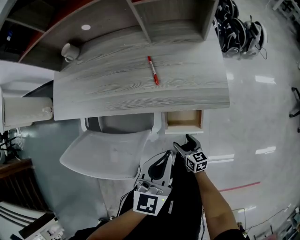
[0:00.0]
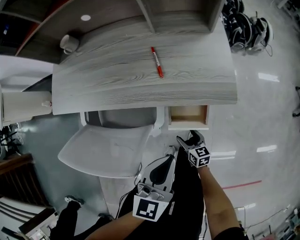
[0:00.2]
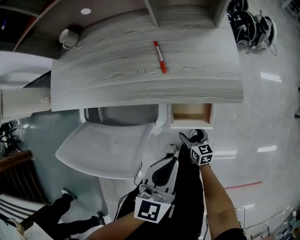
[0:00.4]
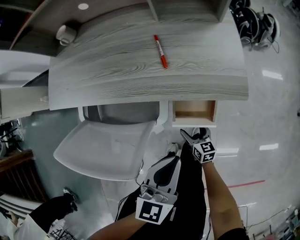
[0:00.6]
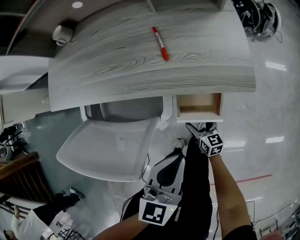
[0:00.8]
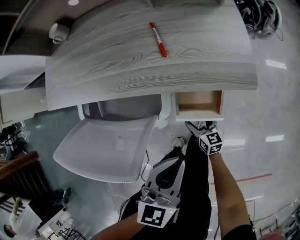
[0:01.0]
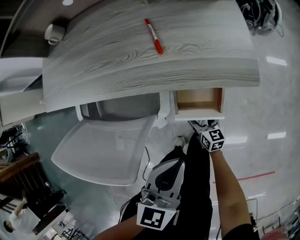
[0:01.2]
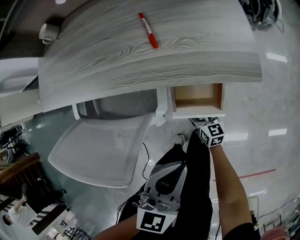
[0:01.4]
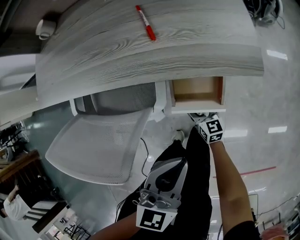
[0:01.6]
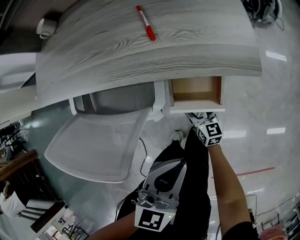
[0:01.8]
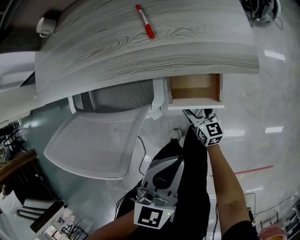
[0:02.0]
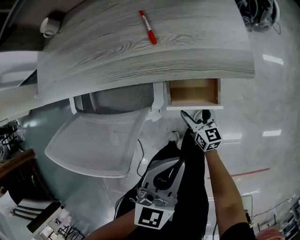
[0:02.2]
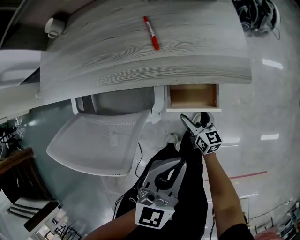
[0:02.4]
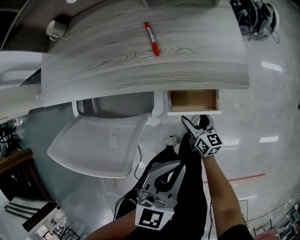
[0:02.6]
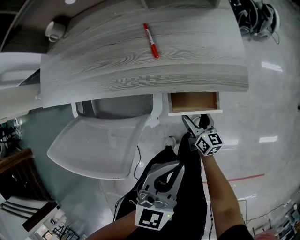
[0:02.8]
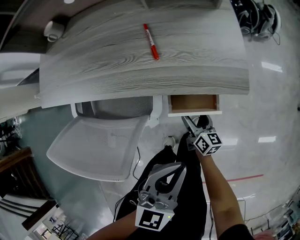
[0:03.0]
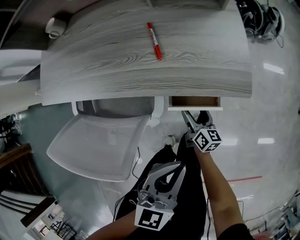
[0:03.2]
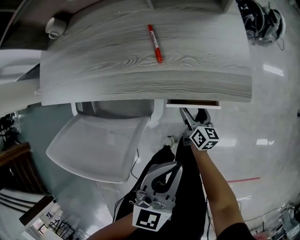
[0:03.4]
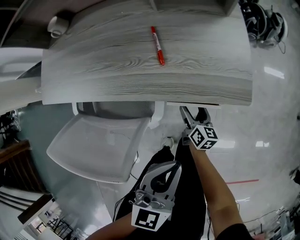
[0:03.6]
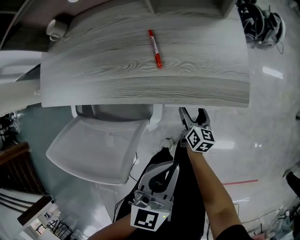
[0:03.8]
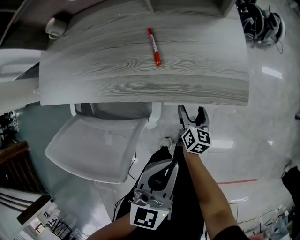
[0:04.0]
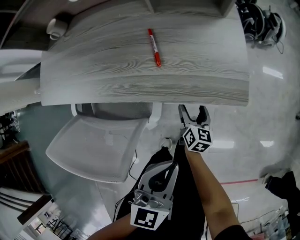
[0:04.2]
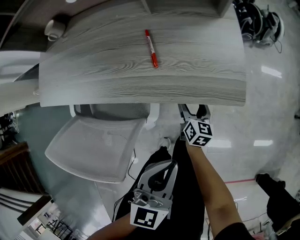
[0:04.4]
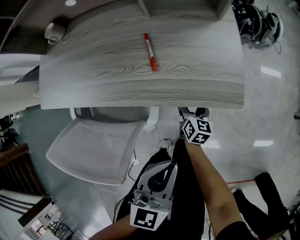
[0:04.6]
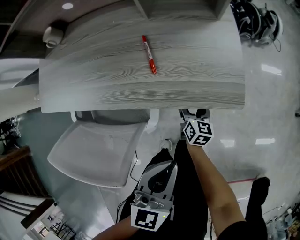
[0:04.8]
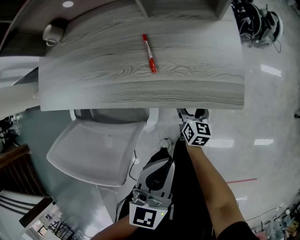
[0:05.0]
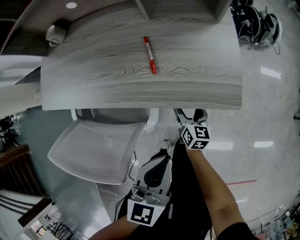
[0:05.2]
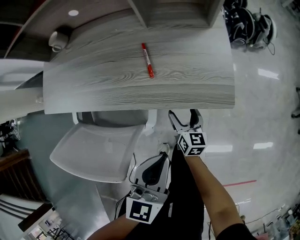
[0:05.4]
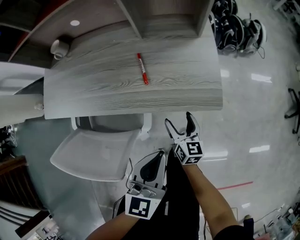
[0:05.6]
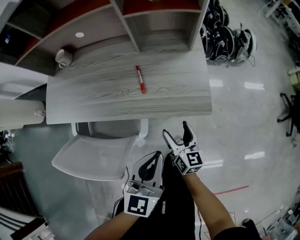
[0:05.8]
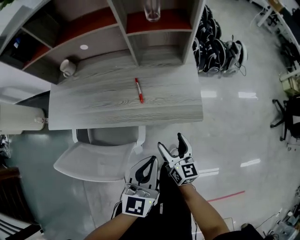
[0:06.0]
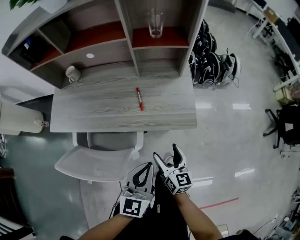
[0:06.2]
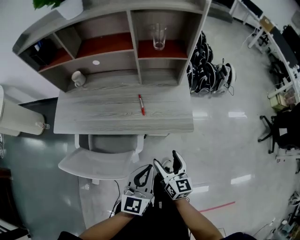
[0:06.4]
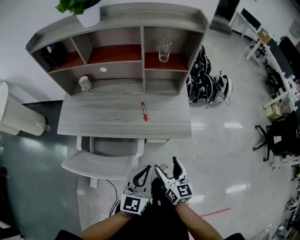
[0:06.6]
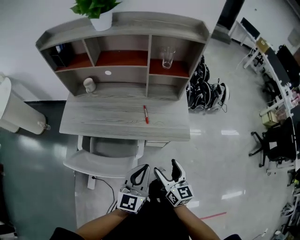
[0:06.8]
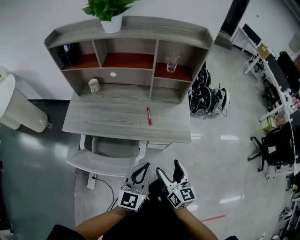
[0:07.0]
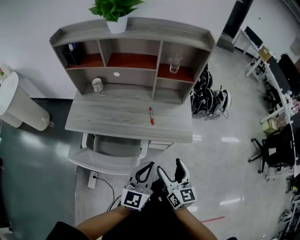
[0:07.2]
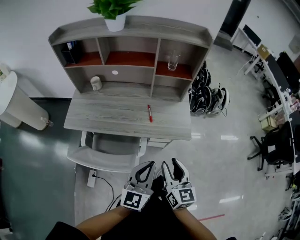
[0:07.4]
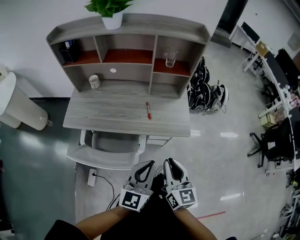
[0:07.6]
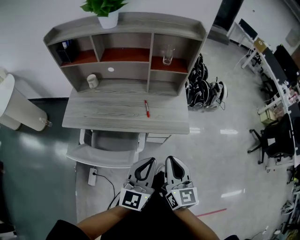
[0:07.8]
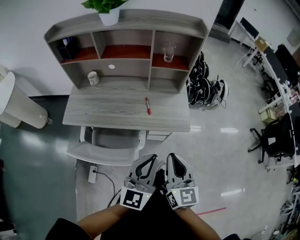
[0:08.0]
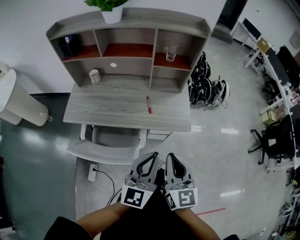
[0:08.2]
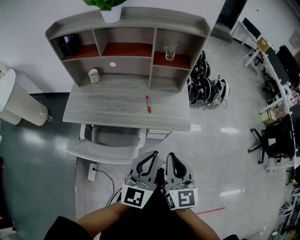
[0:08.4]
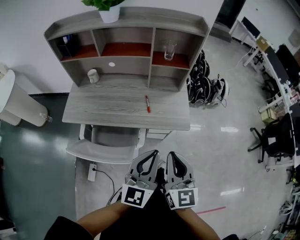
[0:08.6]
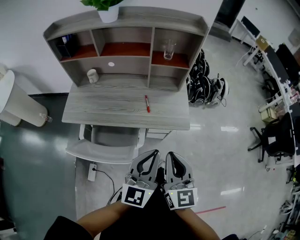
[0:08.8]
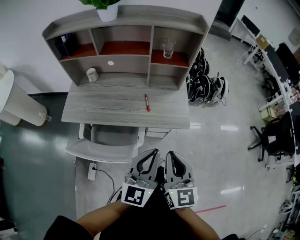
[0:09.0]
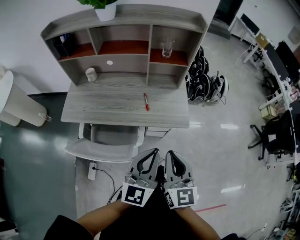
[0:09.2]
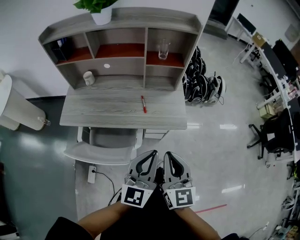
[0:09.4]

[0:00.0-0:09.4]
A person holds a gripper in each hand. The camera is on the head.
0.0 to 1.6 s: The left gripper heads downward and backward, covering approximately 10 cm. The right gripper heads downward and forward, covering about 10 cm.
1.6 to 3.2 s: The right gripper is displaced upward by roughly 10 cm, and turns by roughly 30 degrees, while the left gripper shifts by roughly 5 cm.
3.2 to 4.8 s: The right gripper goes approximately 10 cm forward.
4.8 to 6.2 s: The left gripper heads upward, covering approximately 10 cm. Meanwhile the right gripper heads upward and backward, covering approximately 30 cm.
6.2 to 7.8 s: The right gripper is displaced upward and backward by about 25 cm, and closes its fingers, while the left gripper is displaced upward and backward by roughly 15 cm.
7.8 to 9.4 s: The grippers move only a little.

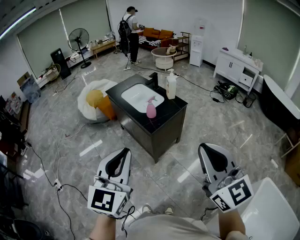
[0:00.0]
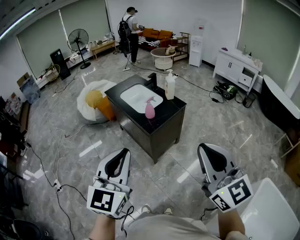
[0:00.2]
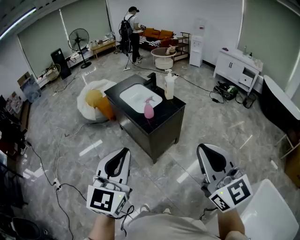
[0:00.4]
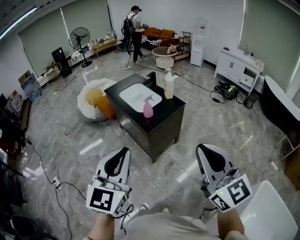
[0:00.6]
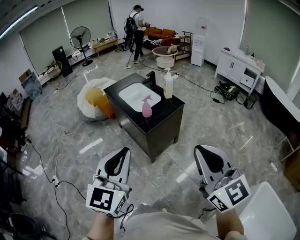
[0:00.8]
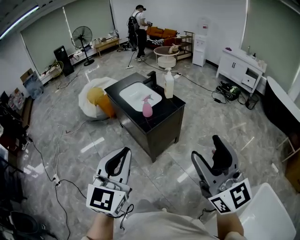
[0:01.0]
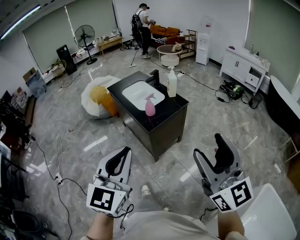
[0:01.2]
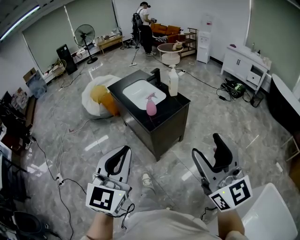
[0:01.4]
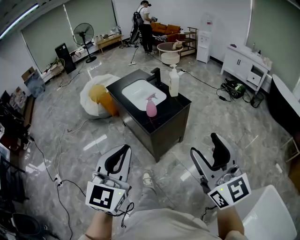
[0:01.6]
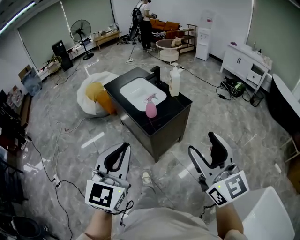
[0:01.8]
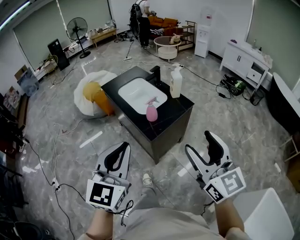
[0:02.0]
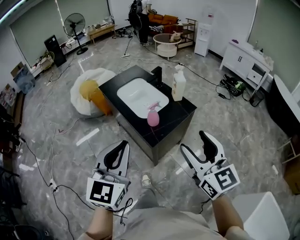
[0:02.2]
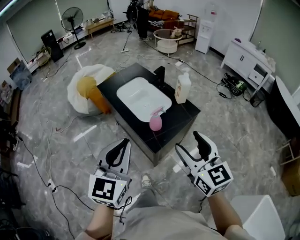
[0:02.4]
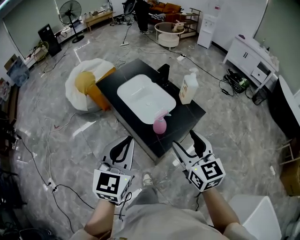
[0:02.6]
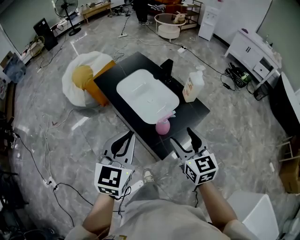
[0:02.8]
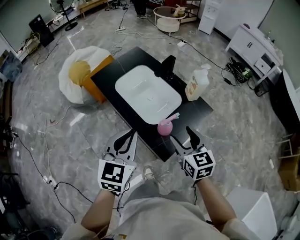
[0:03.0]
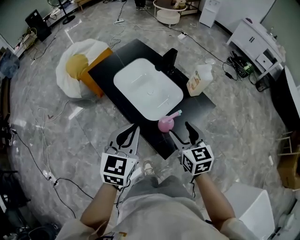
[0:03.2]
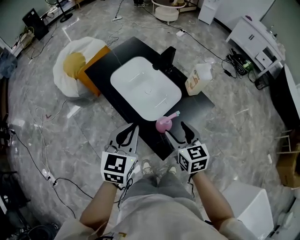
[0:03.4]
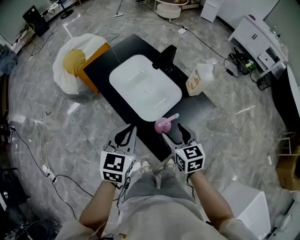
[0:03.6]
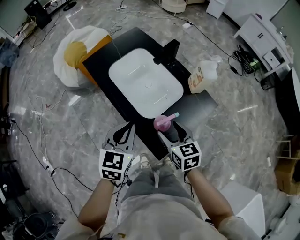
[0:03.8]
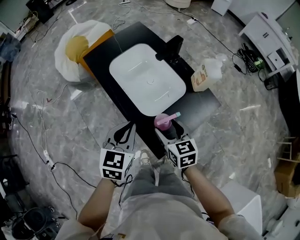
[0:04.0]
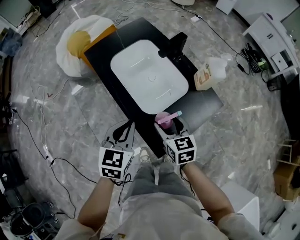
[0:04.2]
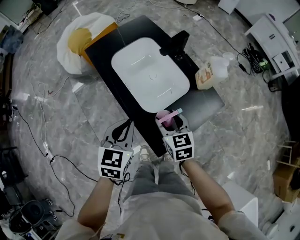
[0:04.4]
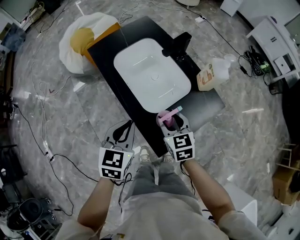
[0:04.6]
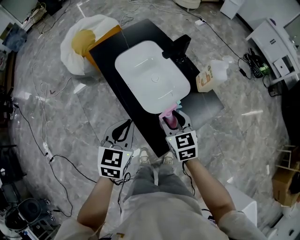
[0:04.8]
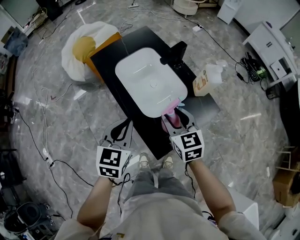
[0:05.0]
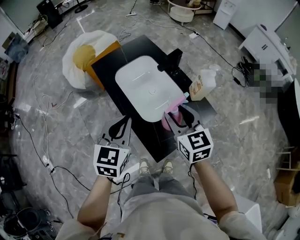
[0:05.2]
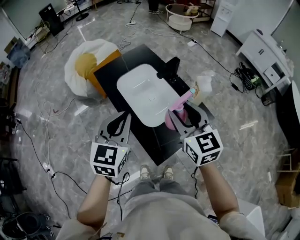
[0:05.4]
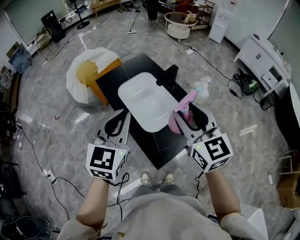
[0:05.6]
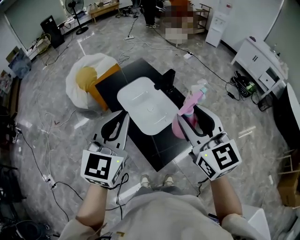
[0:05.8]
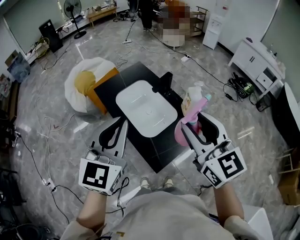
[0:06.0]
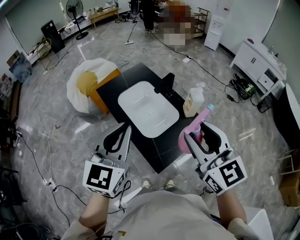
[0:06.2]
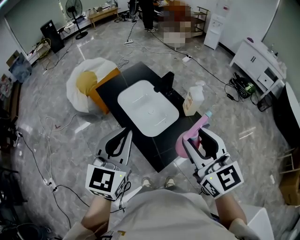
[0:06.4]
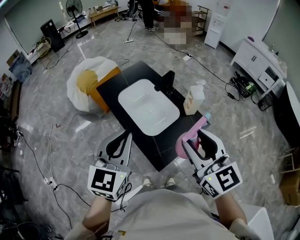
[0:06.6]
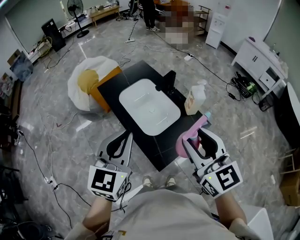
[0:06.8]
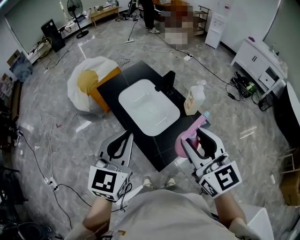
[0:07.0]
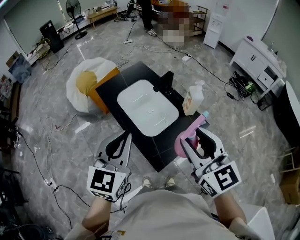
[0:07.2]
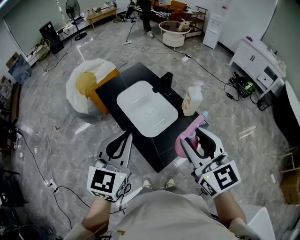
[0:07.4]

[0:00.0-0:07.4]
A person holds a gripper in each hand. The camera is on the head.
0.0 to 1.4 s: The right gripper moves to the right, roughly 5 cm, and opens.
1.4 to 3.0 s: The pair of grippers is taken forward, roughly 40 cm. The right gripper goes about 25 cm downward, and angles its fingers downward, by approximately 40 degrees. Meanwhile the left gripper rotates some 20 degrees.
3.0 to 4.4 s: The left gripper travels downward by some 10 cm, while the right gripper travels downward and forward by approximately 15 cm.
4.4 to 6.0 s: The two grippers go approximately 30 cm upward. The left gripper changes its angle by roughly 30 degrees; the right gripper rotates about 30 degrees.
6.0 to 7.4 s: The right gripper ends up roughly 5 cm from where it was, while the left gripper moves downward, approximately 5 cm.

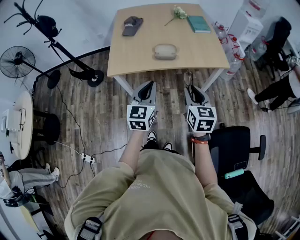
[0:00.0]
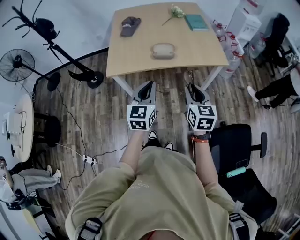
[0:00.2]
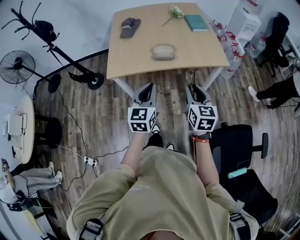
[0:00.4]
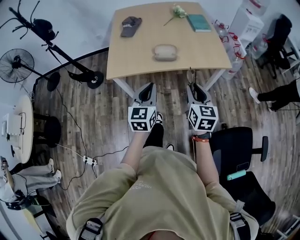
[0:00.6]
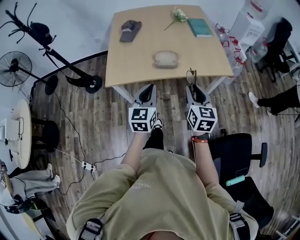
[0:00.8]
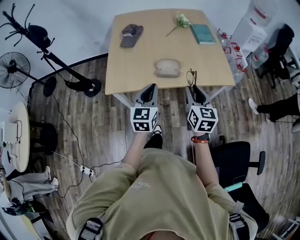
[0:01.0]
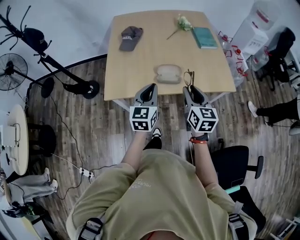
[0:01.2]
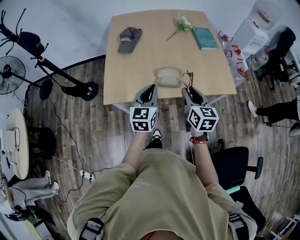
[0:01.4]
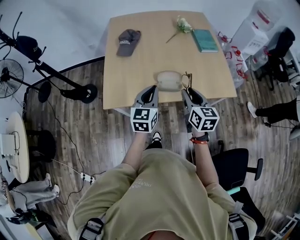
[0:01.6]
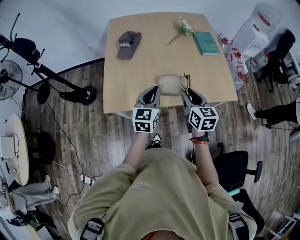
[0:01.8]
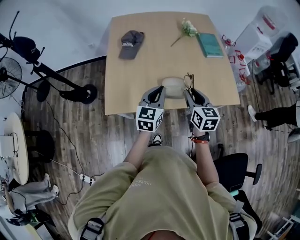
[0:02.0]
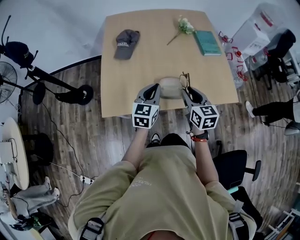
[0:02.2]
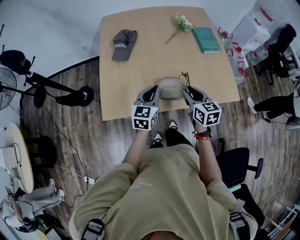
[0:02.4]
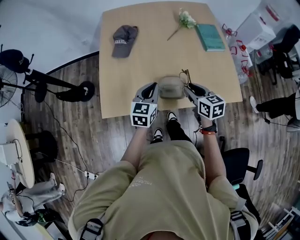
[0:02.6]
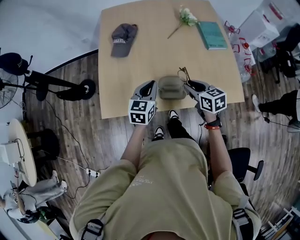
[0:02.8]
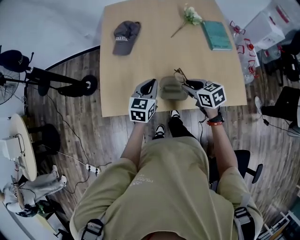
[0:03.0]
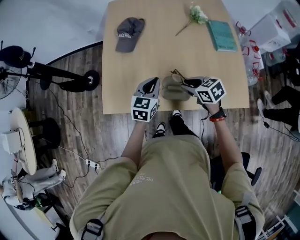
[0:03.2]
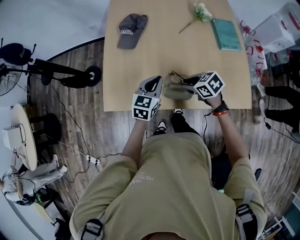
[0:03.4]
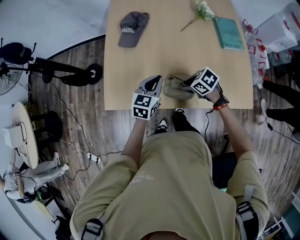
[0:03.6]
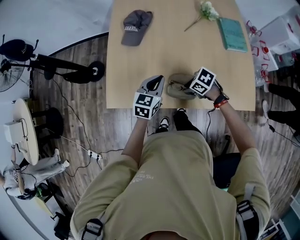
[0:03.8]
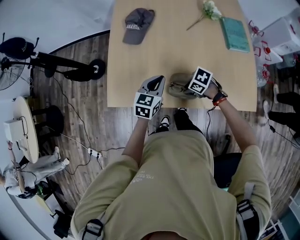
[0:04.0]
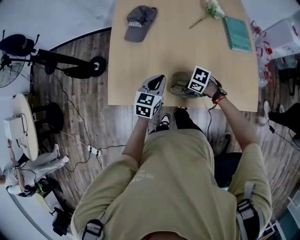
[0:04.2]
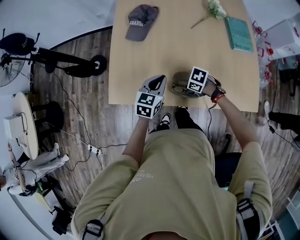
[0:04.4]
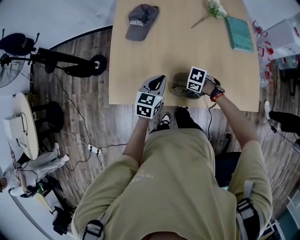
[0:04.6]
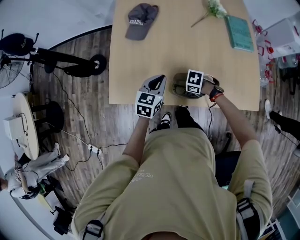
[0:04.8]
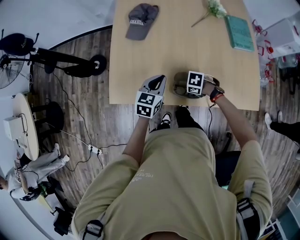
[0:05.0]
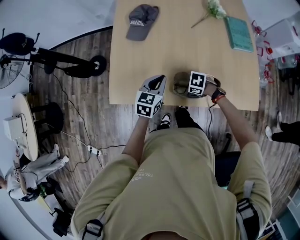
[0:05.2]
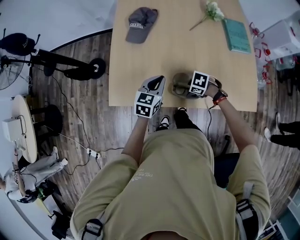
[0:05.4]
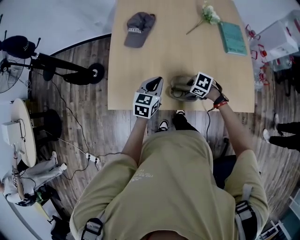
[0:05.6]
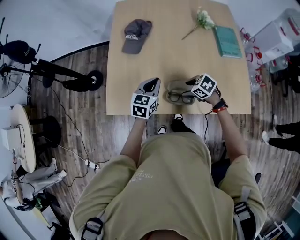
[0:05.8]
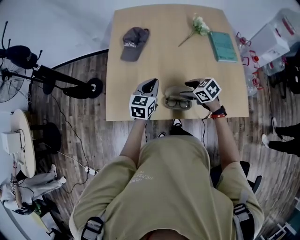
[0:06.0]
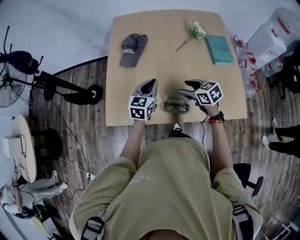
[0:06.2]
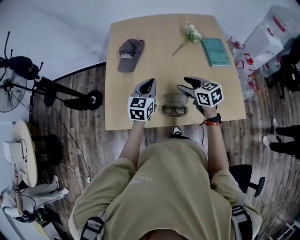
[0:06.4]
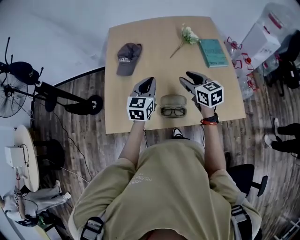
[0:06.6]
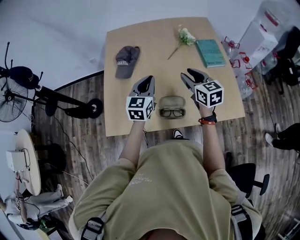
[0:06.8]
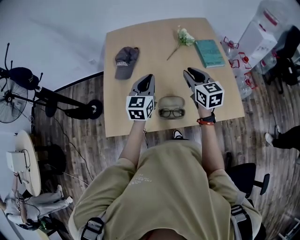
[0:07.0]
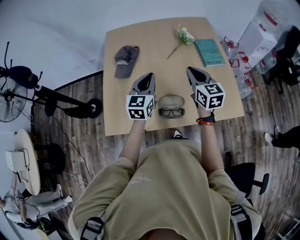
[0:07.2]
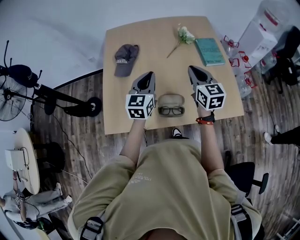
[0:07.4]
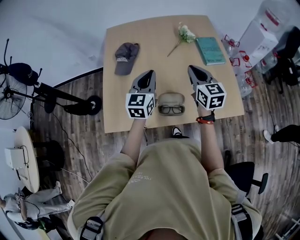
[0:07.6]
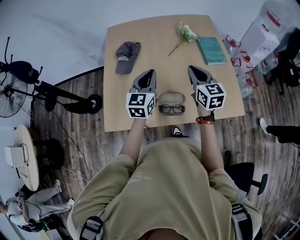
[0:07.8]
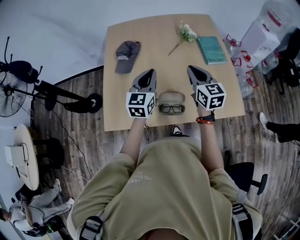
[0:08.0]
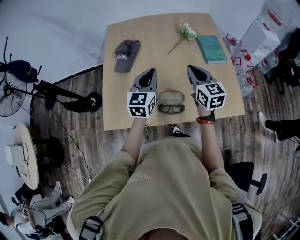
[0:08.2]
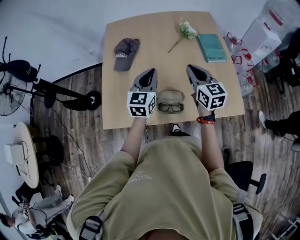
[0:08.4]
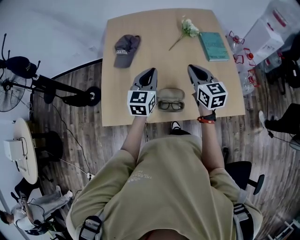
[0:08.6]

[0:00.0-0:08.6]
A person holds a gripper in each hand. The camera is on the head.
0.0 to 1.4 s: The grippers both shift forward by about 30 cm.
1.4 to 2.8 s: The left gripper shifts some 20 cm forward. Meanwhile the right gripper travels forward and downward by about 25 cm, and changes its angle by roughly 30 degrees.
2.8 to 4.4 s: The left gripper heads downward, covering about 5 cm. Meanwhile the right gripper goes approximately 20 cm downward, and swivels about 70 degrees.
4.4 to 5.8 s: The right gripper shifts some 5 cm upward, turns by about 20 degrees, and opens up.
5.8 to 7.2 s: The right gripper is displaced upward by approximately 25 cm, angles its fingers upward, by some 40 degrees, and closes its fingers, while the left gripper is displaced upward by about 15 cm.
7.2 to 8.6 s: The grippers stay close to where they were, moving slightly.
